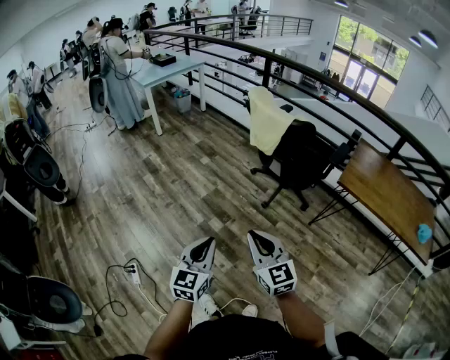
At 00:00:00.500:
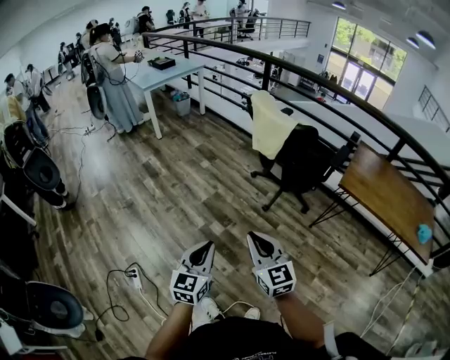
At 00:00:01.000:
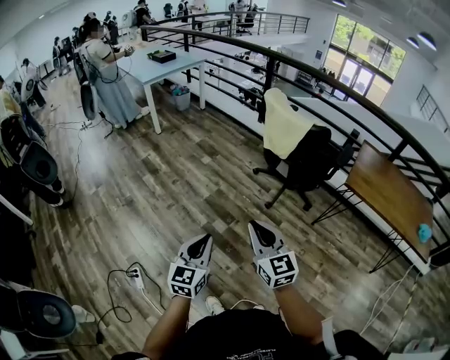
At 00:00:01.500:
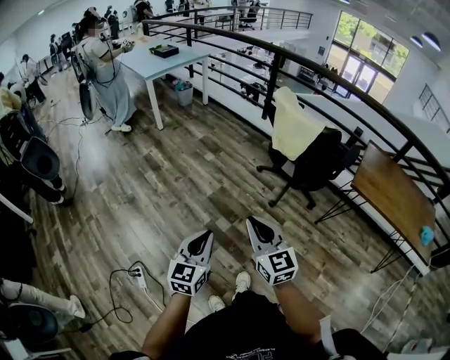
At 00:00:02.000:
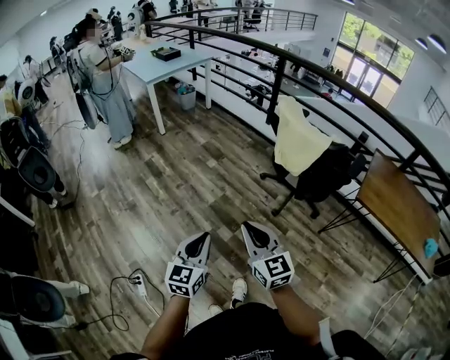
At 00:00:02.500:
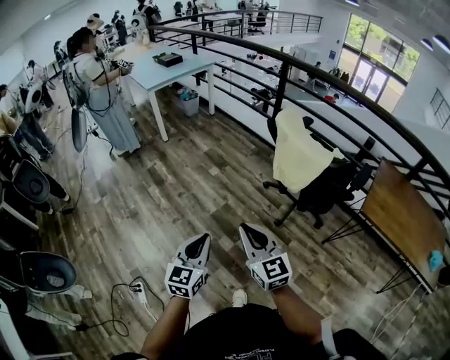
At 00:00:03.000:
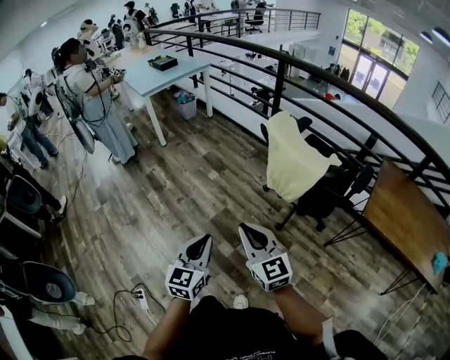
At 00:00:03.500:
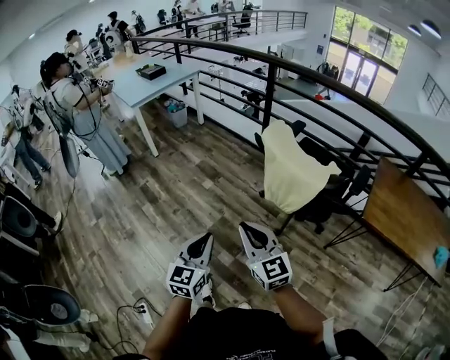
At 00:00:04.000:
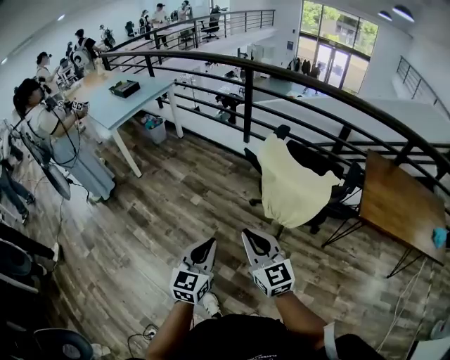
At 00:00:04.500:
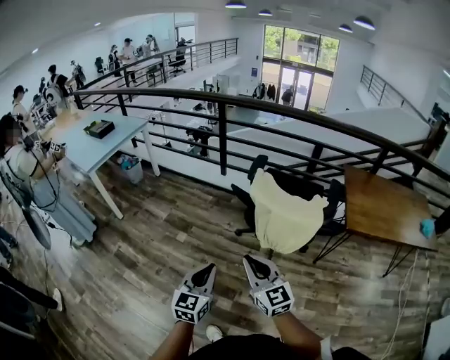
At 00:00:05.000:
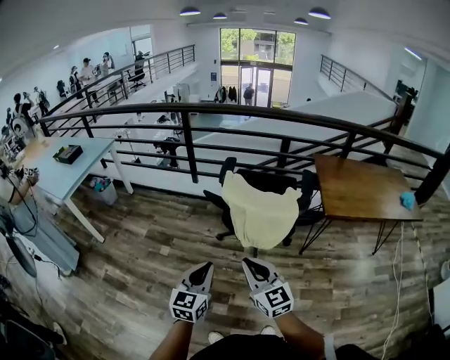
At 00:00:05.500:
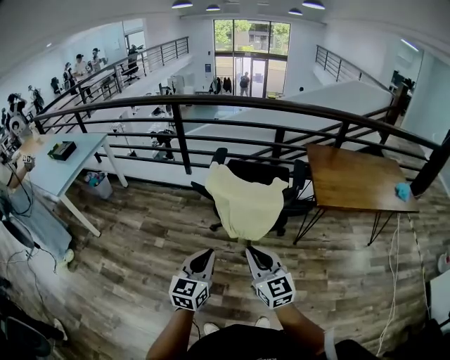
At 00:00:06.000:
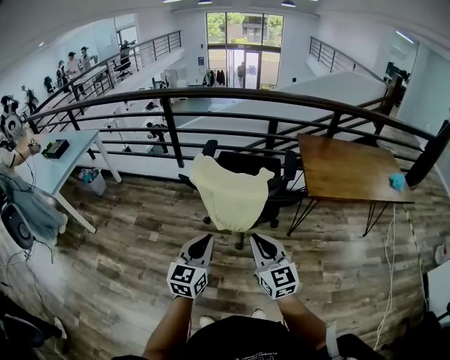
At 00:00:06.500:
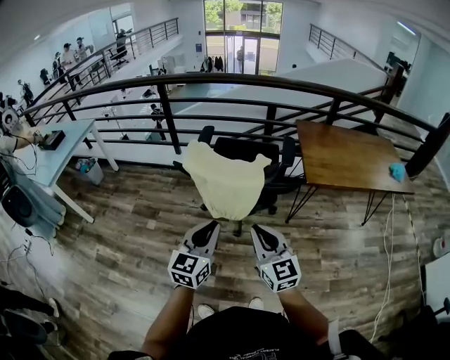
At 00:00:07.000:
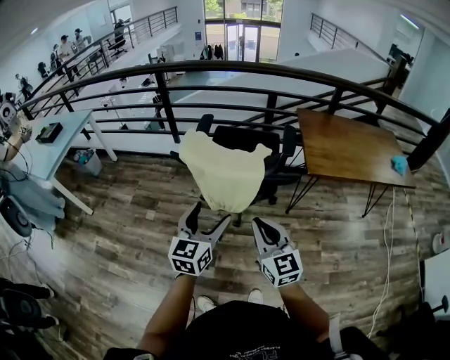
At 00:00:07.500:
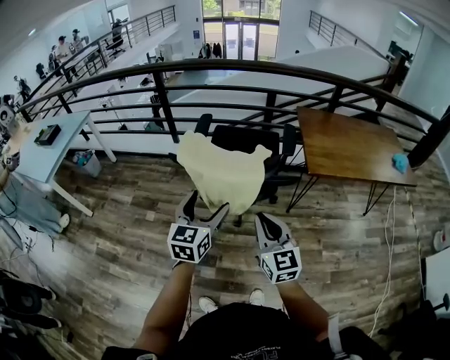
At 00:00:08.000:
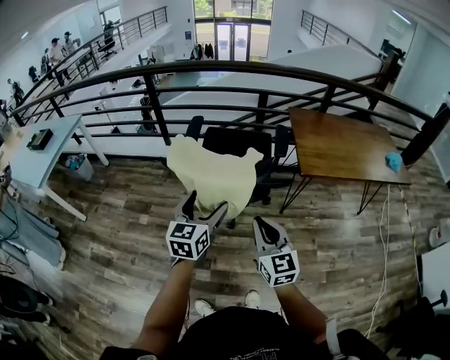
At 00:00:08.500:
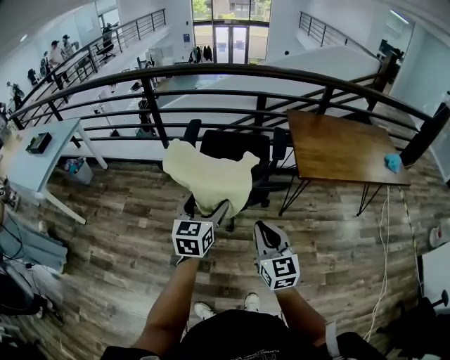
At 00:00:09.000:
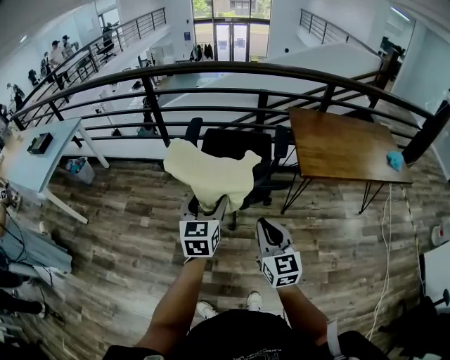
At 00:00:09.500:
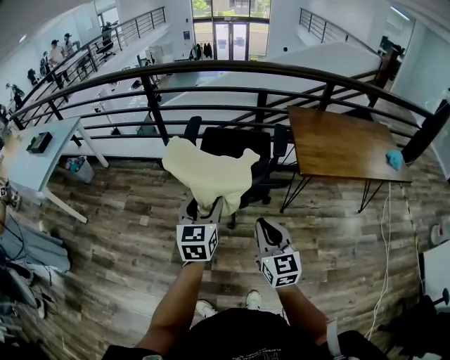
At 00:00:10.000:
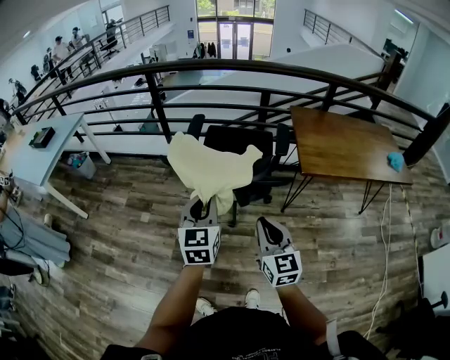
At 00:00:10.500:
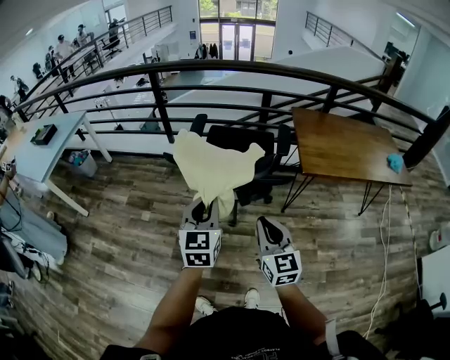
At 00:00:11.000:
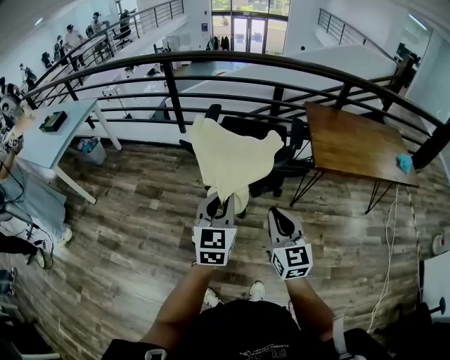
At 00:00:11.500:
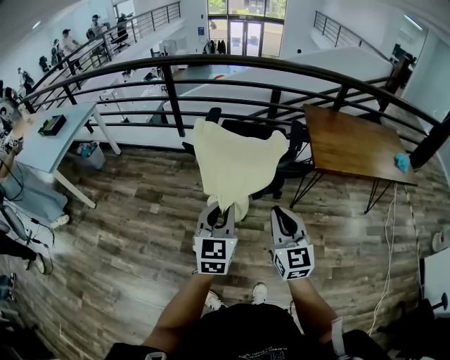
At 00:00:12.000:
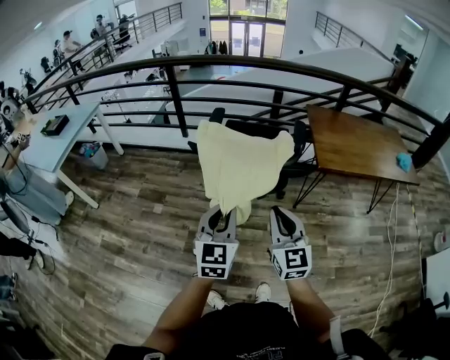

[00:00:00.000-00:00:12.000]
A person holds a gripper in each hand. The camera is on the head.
00:00:00.000 to 00:00:02.000: The two grippers go some 20 cm forward and to the left.
00:00:02.000 to 00:00:04.000: The two grippers go about 25 cm forward.
00:00:04.000 to 00:00:06.000: The left gripper shifts by roughly 15 cm, and swivels roughly 20 degrees. Meanwhile the right gripper ends up about 15 cm from where it was, and rotates about 30 degrees.
00:00:06.000 to 00:00:08.000: The left gripper travels forward by approximately 10 cm, and opens, while the right gripper goes roughly 5 cm to the right.
00:00:08.000 to 00:00:10.000: The left gripper closes its fingers.
00:00:10.000 to 00:00:12.000: The left gripper is displaced backward by approximately 10 cm. The right gripper shifts approximately 5 cm to the left.

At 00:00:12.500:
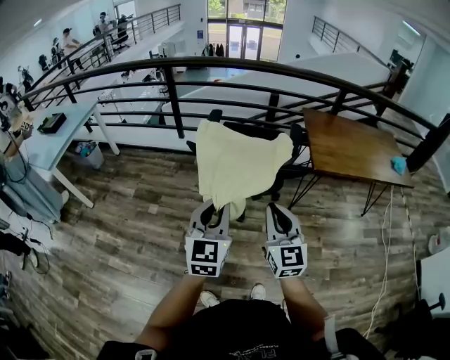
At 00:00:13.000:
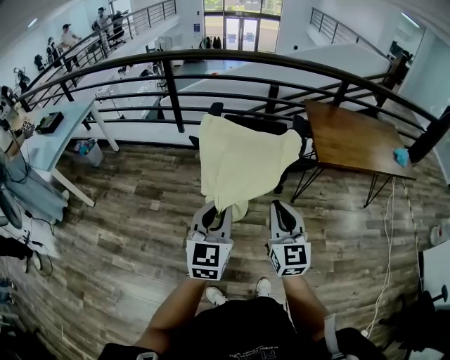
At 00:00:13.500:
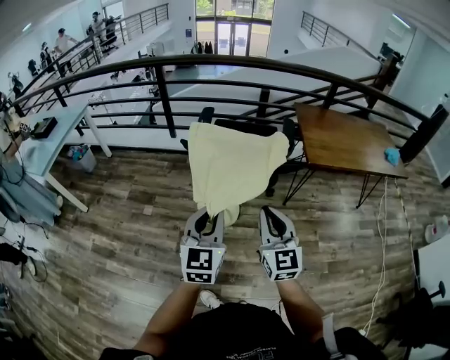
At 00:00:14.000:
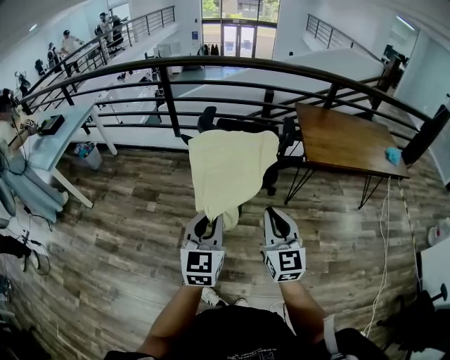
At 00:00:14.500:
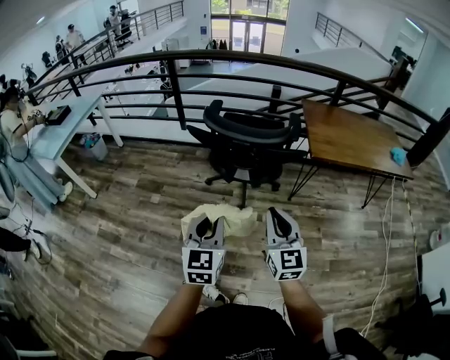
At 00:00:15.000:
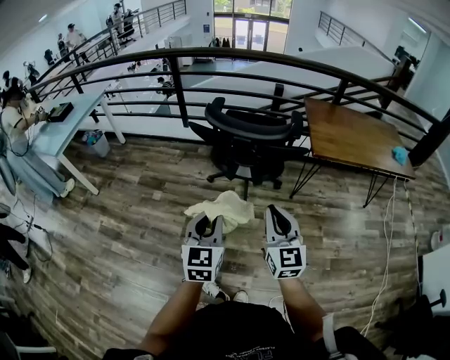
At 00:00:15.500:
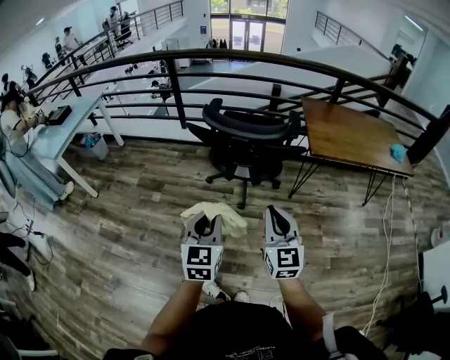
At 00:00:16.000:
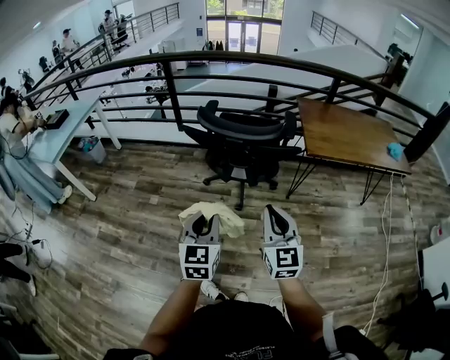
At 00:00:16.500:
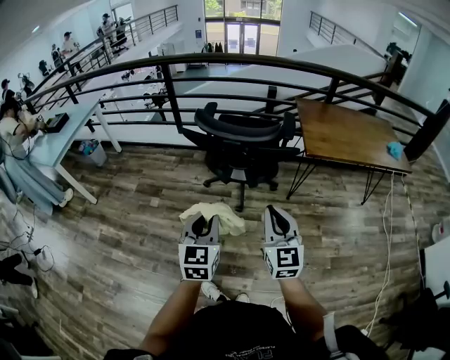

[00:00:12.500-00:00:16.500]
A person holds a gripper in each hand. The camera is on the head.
00:00:12.500 to 00:00:14.500: The right gripper is displaced backward by approximately 10 cm. Meanwhile the left gripper goes approximately 10 cm backward and downward.
00:00:14.500 to 00:00:16.500: There are only small adjustments of the grippers.

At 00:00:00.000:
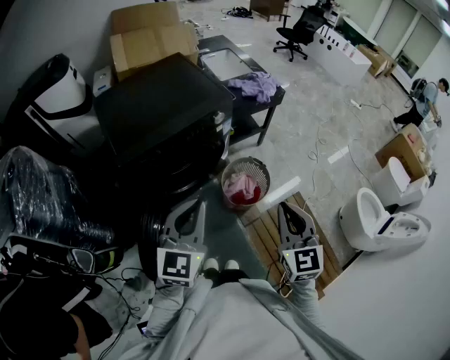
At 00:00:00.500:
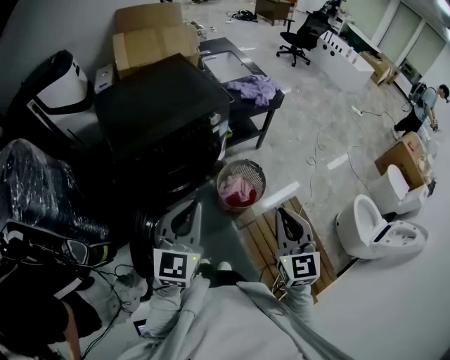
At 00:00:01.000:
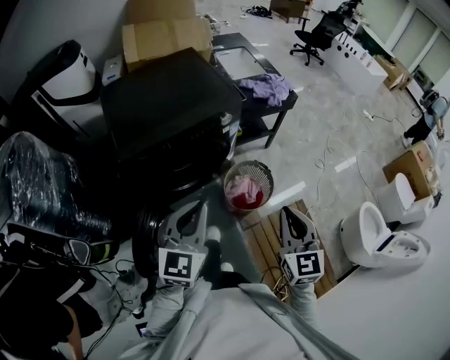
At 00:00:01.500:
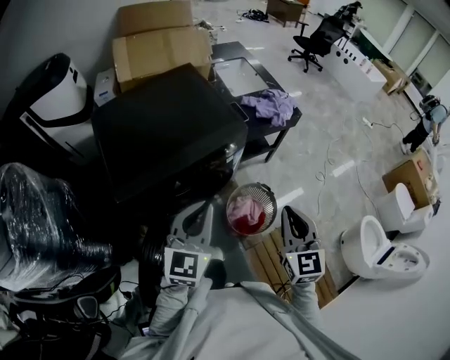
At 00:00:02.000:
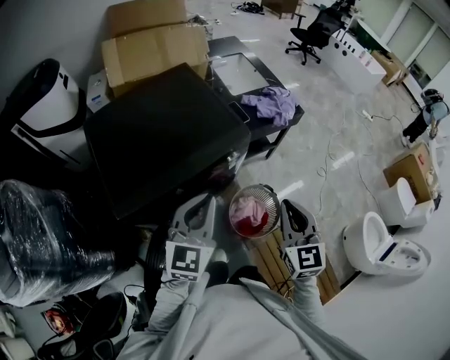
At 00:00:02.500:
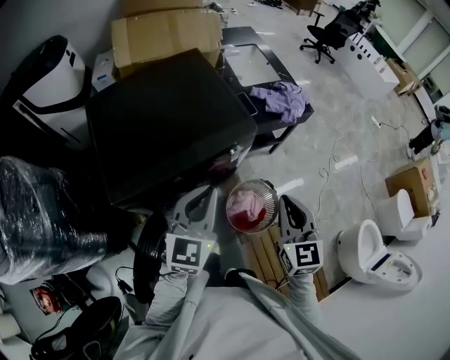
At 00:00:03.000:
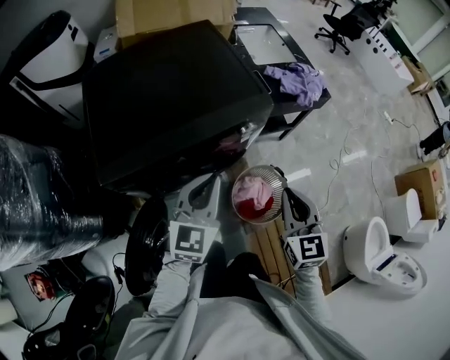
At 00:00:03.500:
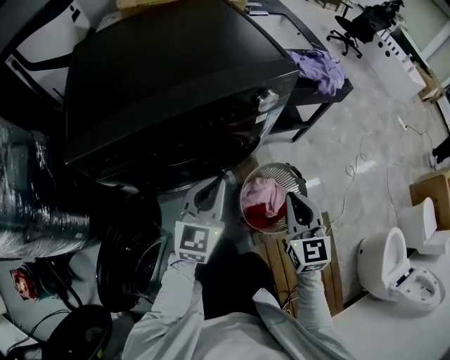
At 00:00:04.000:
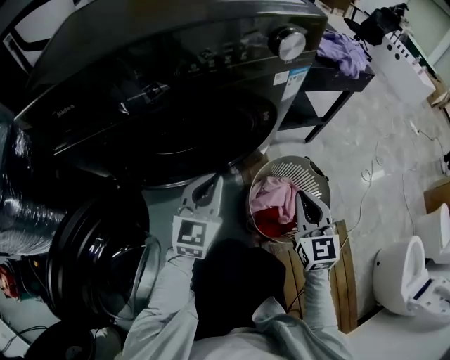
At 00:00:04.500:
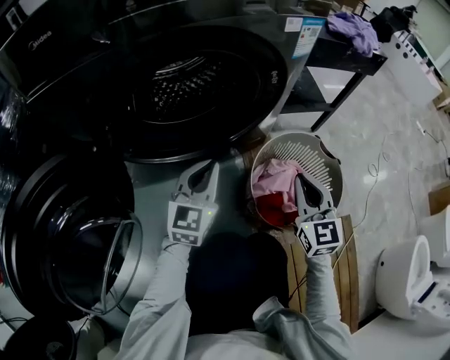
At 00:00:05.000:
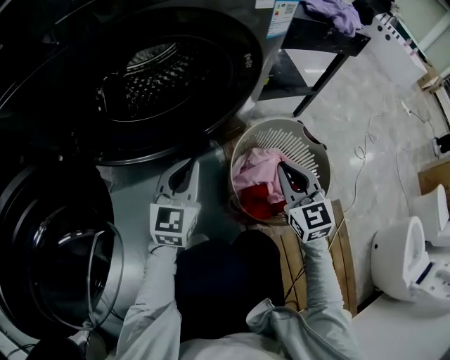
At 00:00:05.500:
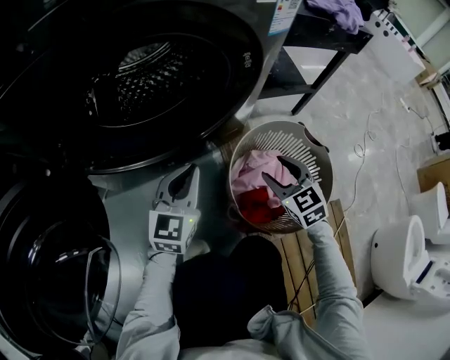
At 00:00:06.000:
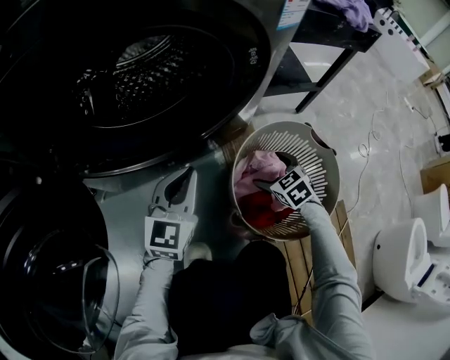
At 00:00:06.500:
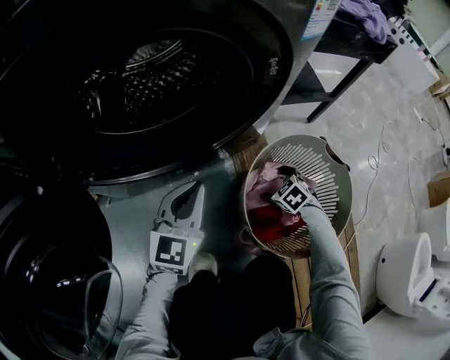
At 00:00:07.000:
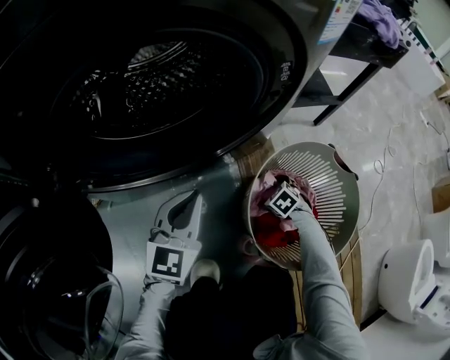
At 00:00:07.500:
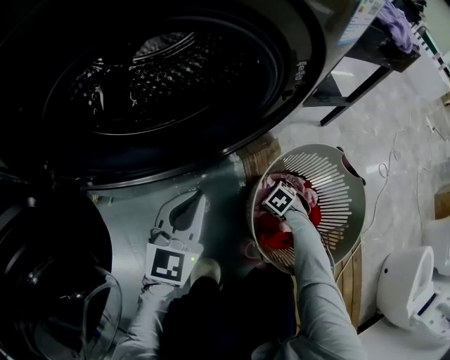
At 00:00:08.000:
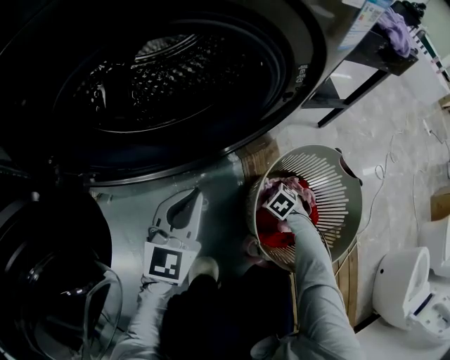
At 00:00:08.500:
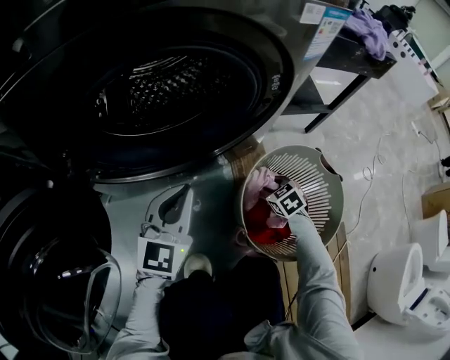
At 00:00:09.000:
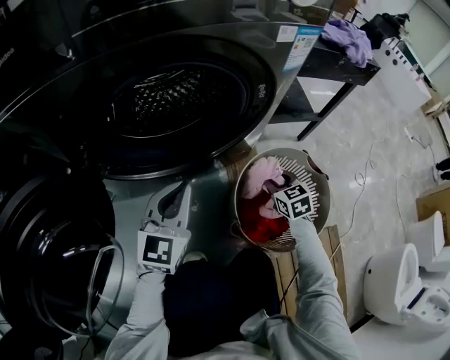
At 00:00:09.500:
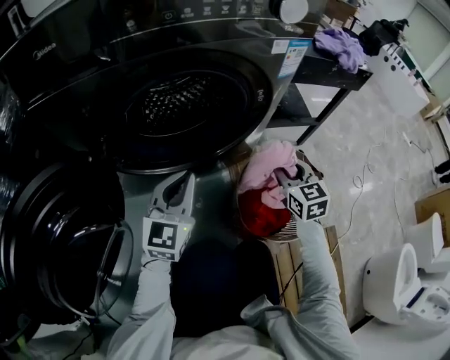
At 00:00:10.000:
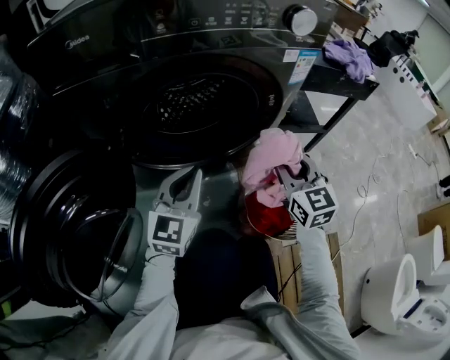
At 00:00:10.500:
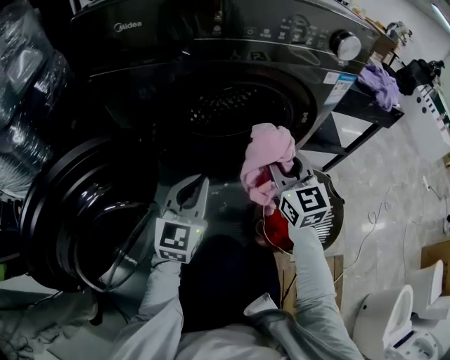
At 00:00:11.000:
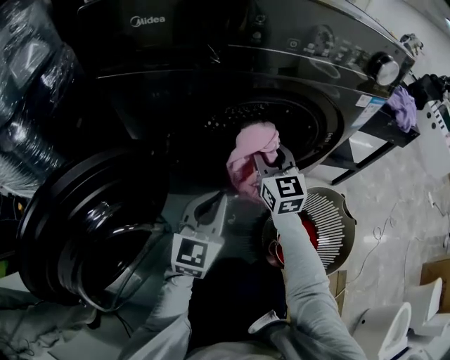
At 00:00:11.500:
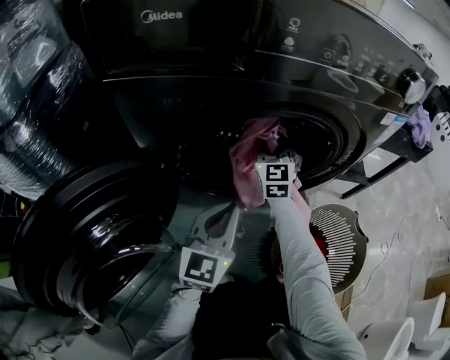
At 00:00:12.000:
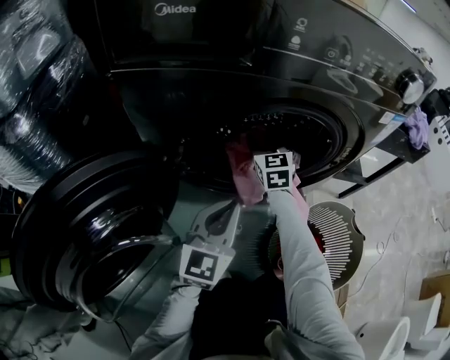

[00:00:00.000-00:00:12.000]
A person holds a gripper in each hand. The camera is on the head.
00:00:00.000 to 00:00:02.000: Both grippers travel together forward, about 25 cm.
00:00:02.000 to 00:00:04.000: The grippers both shift downward by some 50 cm.
00:00:04.000 to 00:00:06.000: The right gripper is displaced downward by roughly 30 cm, points its fingers approximately 40 degrees further downward, and opens up. The left gripper travels downward by approximately 15 cm.
00:00:06.000 to 00:00:08.000: The right gripper travels downward by approximately 15 cm, swivels approximately 20 degrees, and closes its fingers.
00:00:08.000 to 00:00:10.000: The left gripper moves upward, some 15 cm. The right gripper heads upward, covering about 50 cm, and tips its fingers upward by some 60 degrees.
00:00:10.000 to 00:00:12.000: The left gripper travels to the left by roughly 5 cm; the right gripper moves forward and to the left, approximately 30 cm, and opens up.
